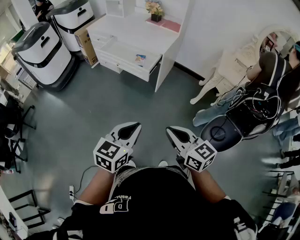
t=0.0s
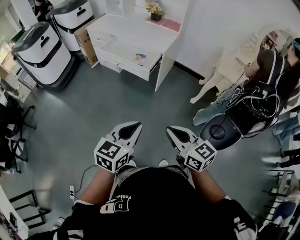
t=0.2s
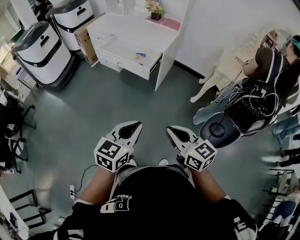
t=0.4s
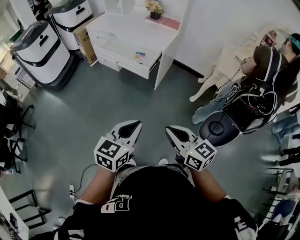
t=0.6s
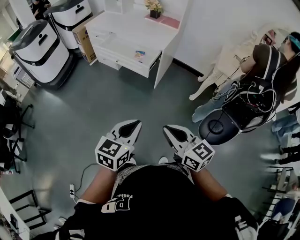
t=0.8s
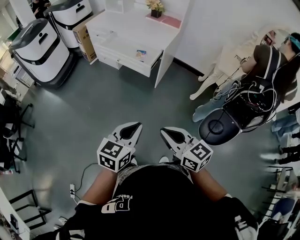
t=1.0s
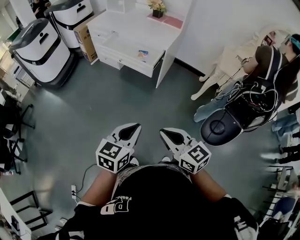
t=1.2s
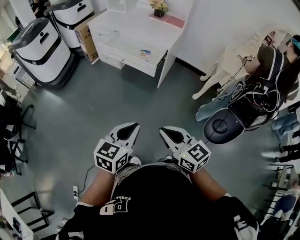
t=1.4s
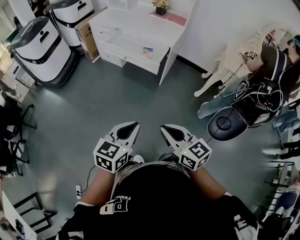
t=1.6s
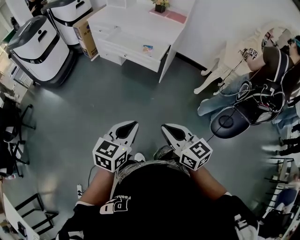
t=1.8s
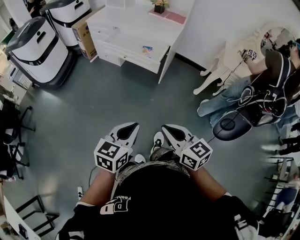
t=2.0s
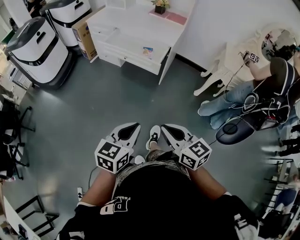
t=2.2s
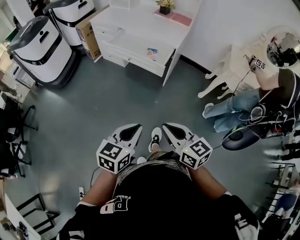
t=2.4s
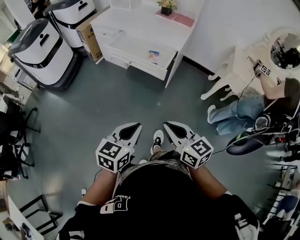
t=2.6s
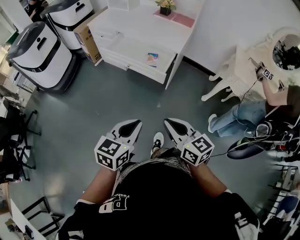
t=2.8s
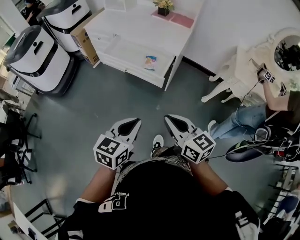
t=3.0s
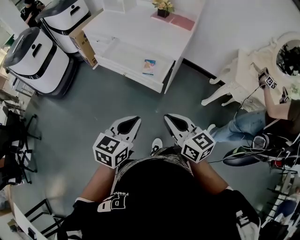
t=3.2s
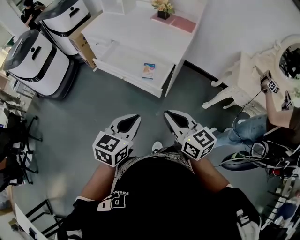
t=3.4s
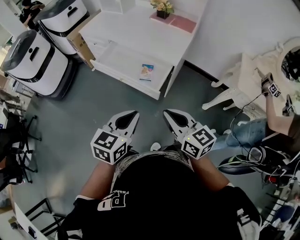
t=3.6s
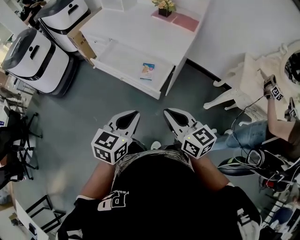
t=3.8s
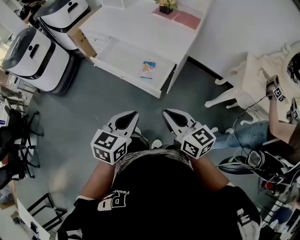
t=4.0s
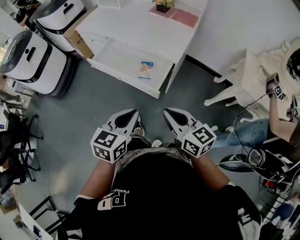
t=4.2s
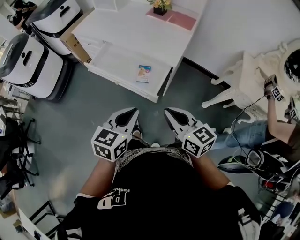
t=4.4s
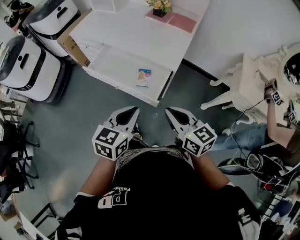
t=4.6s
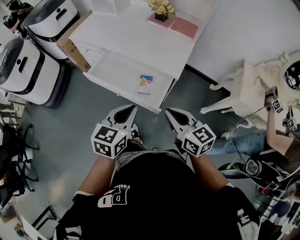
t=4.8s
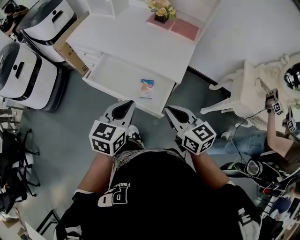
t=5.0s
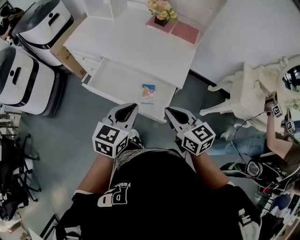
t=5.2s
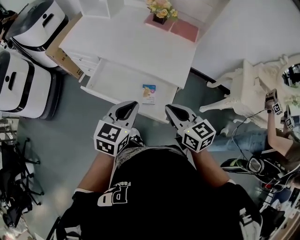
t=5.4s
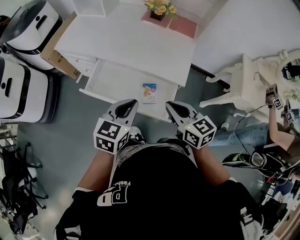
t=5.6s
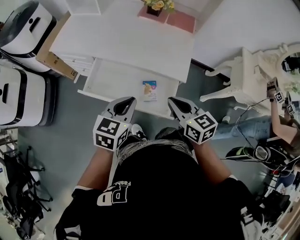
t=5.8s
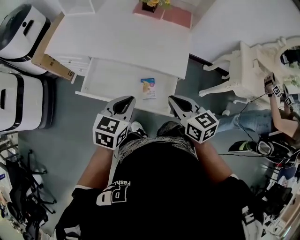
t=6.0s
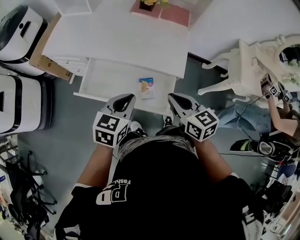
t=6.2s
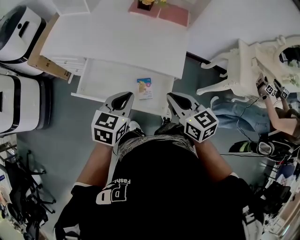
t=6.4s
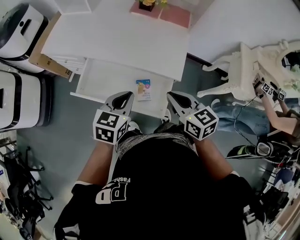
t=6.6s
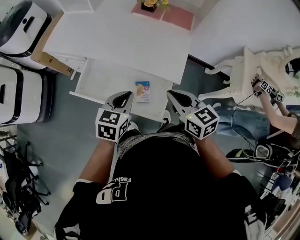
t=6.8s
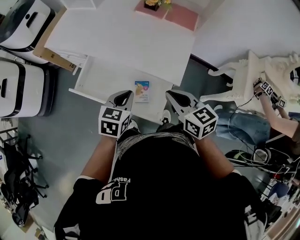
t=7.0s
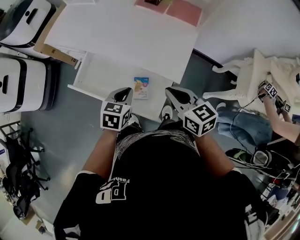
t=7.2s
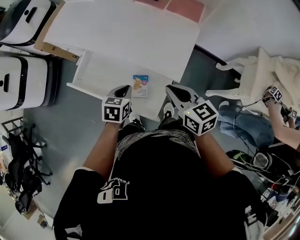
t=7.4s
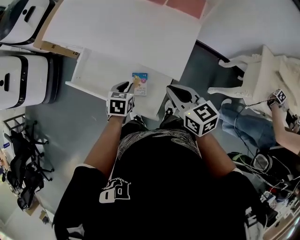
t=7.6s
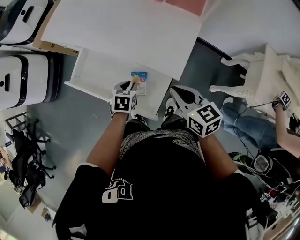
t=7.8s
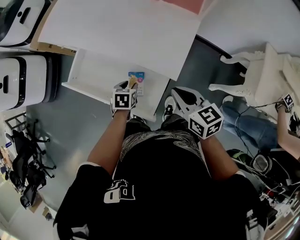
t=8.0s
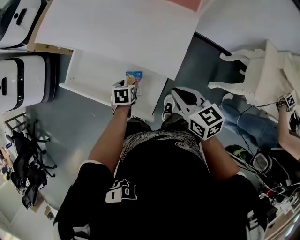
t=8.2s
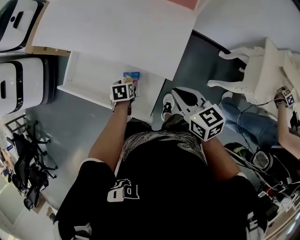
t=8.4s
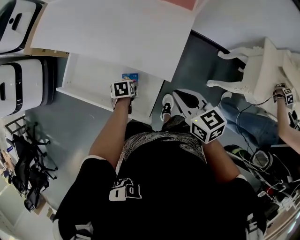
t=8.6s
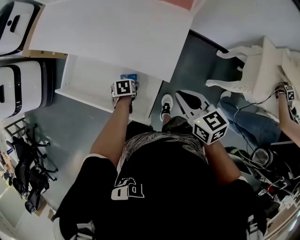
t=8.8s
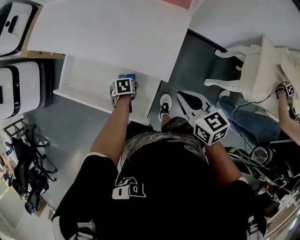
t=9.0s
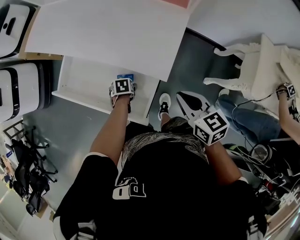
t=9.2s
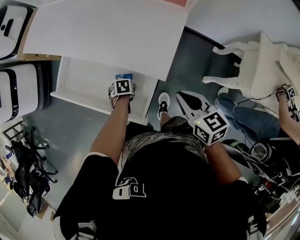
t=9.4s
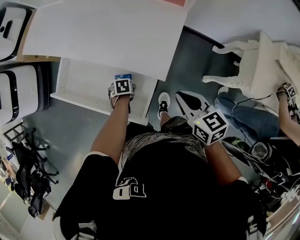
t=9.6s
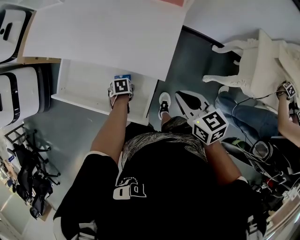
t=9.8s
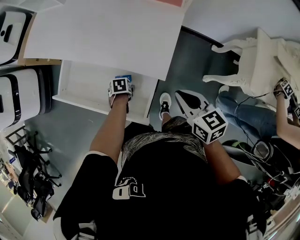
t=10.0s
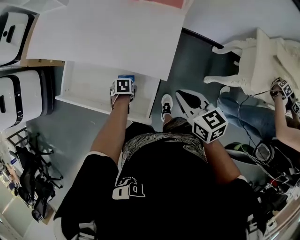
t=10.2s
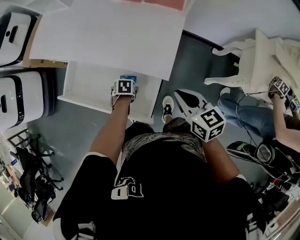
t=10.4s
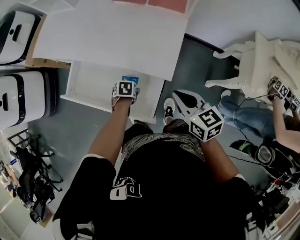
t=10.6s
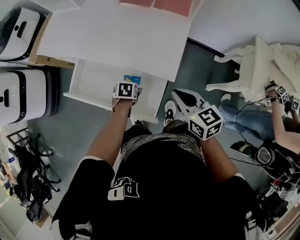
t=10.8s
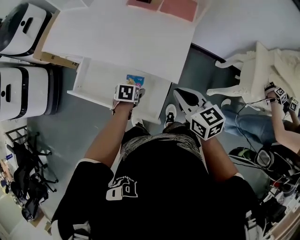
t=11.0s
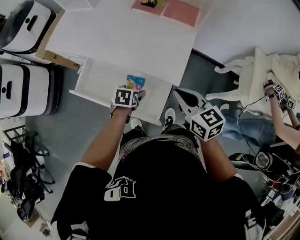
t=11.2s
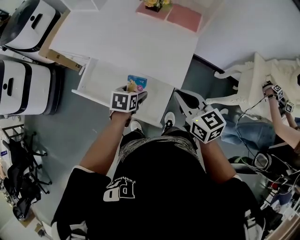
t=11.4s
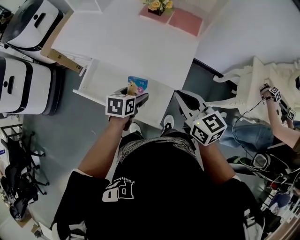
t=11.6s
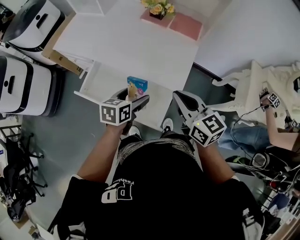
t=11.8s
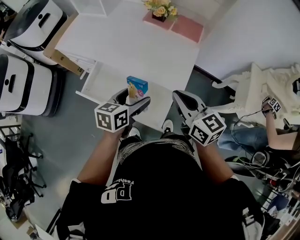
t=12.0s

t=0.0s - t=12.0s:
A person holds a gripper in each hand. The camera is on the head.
t=0.0s - t=1.6s: Both grippers move to the left, approximately 10 cm.
t=1.6s - t=3.0s: The two grippers go some 20 cm forward.
t=3.0s - t=4.4s: The grippers both shift forward by about 20 cm.
t=4.4s - t=6.0s: The right gripper is displaced forward by about 20 cm; the left gripper is displaced forward and to the left by some 25 cm.
t=6.0s - t=7.6s: The right gripper moves to the right, forward and downward, about 15 cm. Meanwhile the left gripper heads downward, forward and to the right, covering roughly 20 cm, and changes its angle by some 30 degrees.
t=7.6s - t=9.0s: The left gripper moves downward, roughly 15 cm, swivels roughly 30 degrees, and opens its fingers. Meanwhile the right gripper ends up about 10 cm from where it was.
t=9.0s - t=10.4s: The grippers make only small movements.
t=10.4s - t=12.0s: The right gripper is displaced upward by some 15 cm, while the left gripper heads upward, covering some 30 cm, and angles its fingers upward, by some 50 degrees.

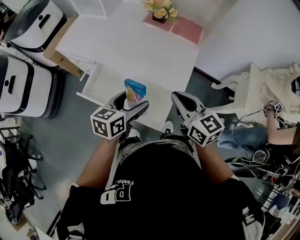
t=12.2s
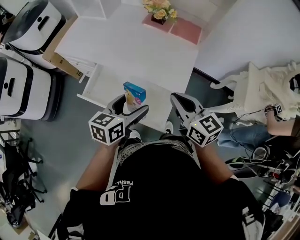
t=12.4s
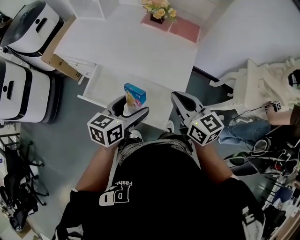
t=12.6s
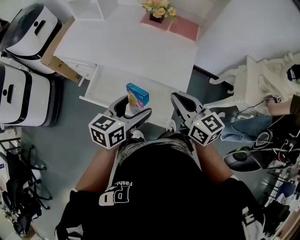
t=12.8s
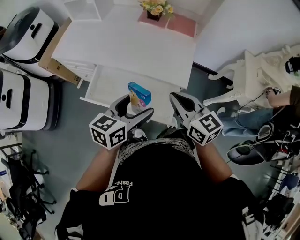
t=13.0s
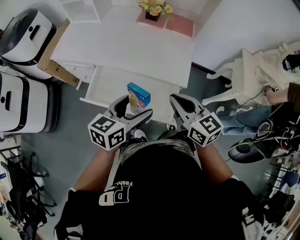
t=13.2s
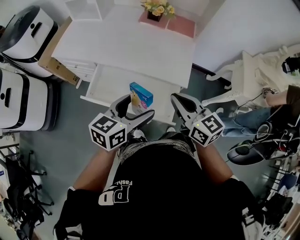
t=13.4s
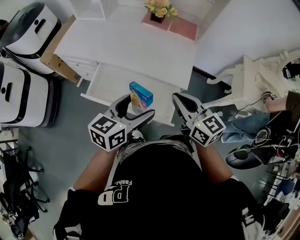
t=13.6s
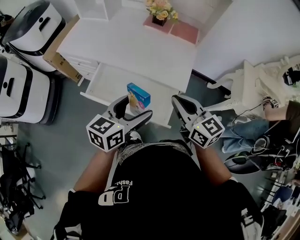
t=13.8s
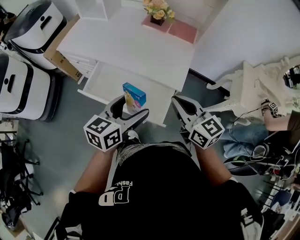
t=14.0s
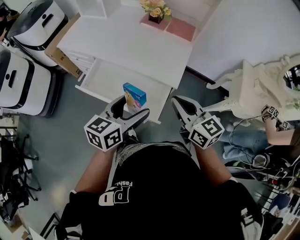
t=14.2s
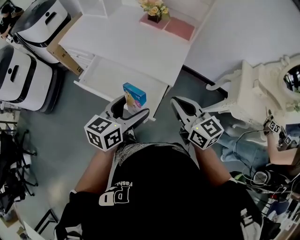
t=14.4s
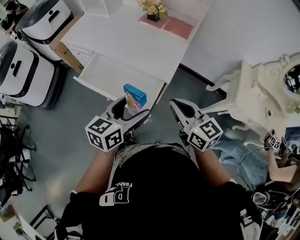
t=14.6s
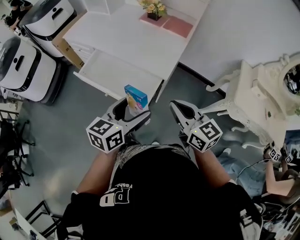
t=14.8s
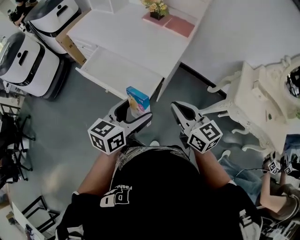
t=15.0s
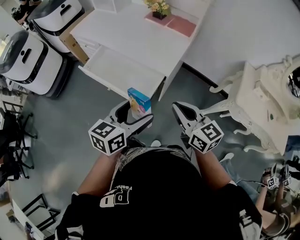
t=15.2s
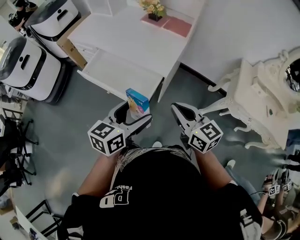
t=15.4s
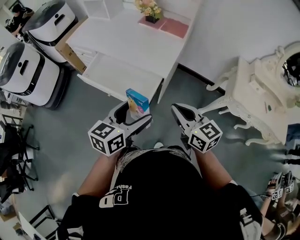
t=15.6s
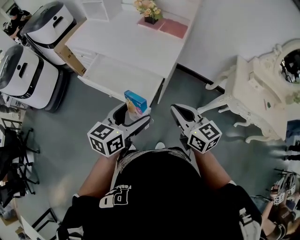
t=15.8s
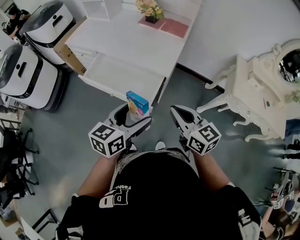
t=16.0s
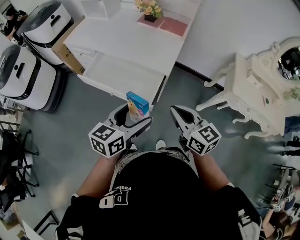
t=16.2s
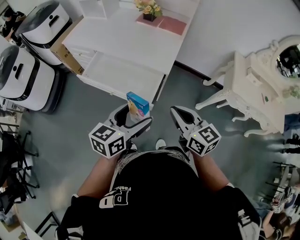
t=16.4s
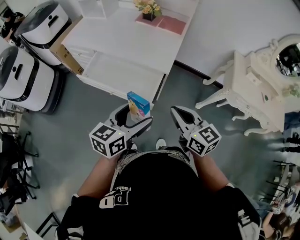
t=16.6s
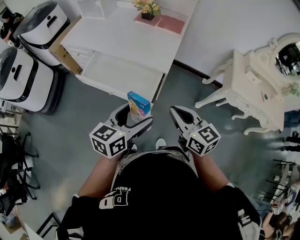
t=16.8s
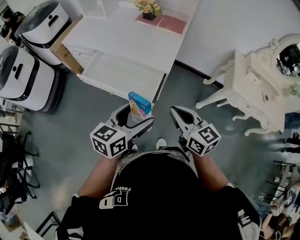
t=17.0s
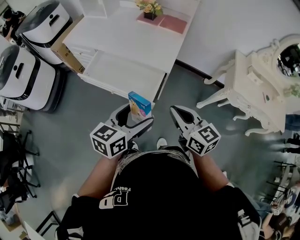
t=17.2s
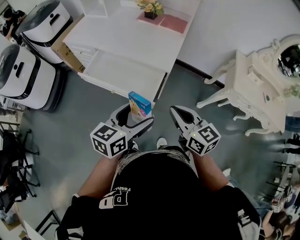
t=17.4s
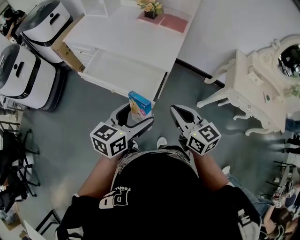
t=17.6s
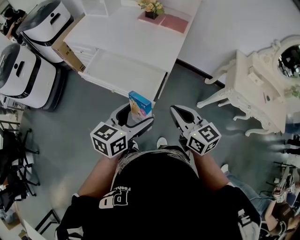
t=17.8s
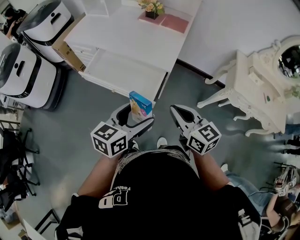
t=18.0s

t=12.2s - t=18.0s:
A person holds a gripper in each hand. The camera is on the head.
t=12.2s - t=13.6s: The right gripper shifts roughly 5 cm backward. The left gripper is displaced backward and upward by about 10 cm.
t=13.6s - t=15.0s: Both grippers move to the right and backward, some 20 cm.
t=15.0s - t=16.6s: The right gripper travels to the left and backward by about 10 cm; the left gripper is displaced to the left by about 5 cm.
t=16.6s - t=18.0s: The two grippers keep their place.

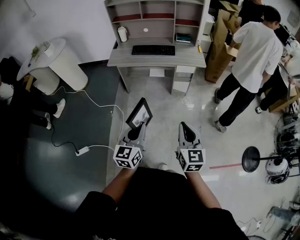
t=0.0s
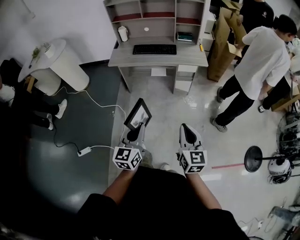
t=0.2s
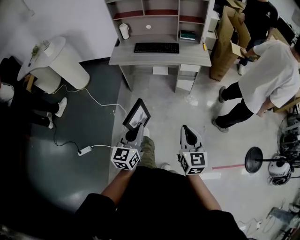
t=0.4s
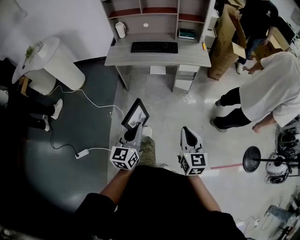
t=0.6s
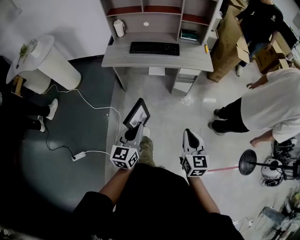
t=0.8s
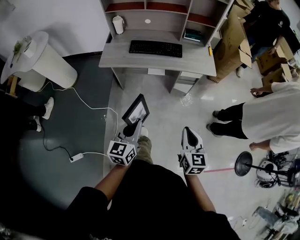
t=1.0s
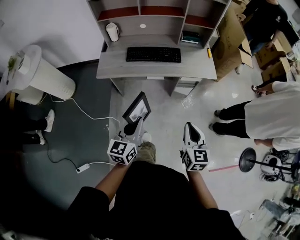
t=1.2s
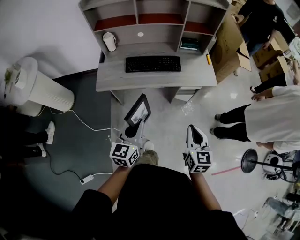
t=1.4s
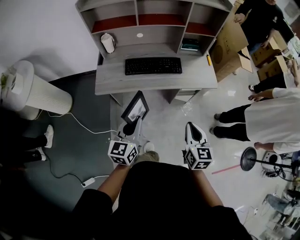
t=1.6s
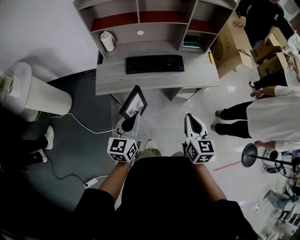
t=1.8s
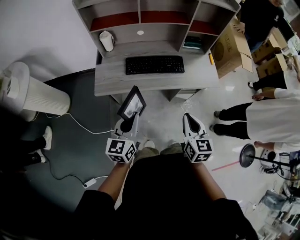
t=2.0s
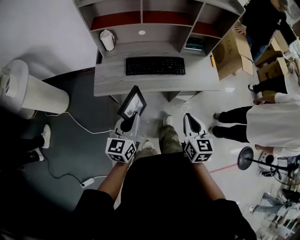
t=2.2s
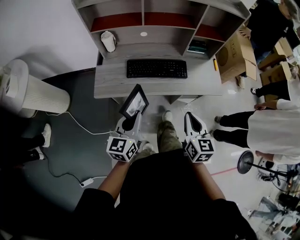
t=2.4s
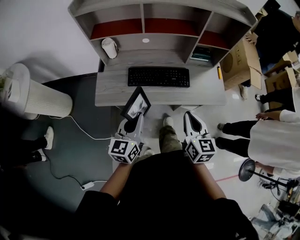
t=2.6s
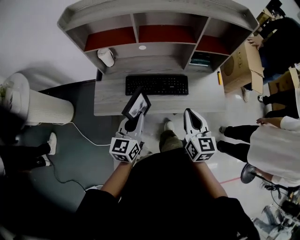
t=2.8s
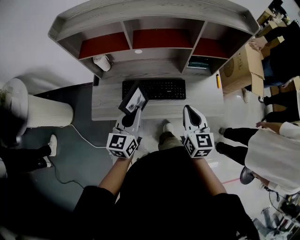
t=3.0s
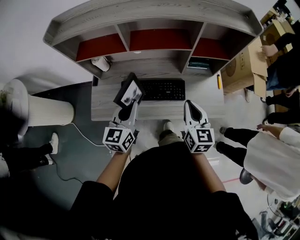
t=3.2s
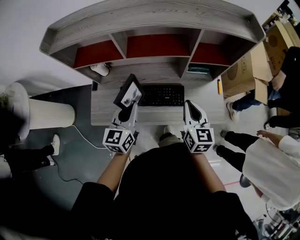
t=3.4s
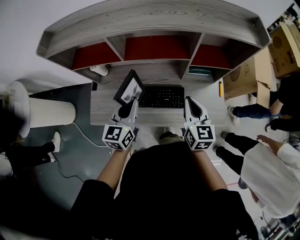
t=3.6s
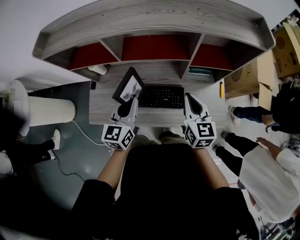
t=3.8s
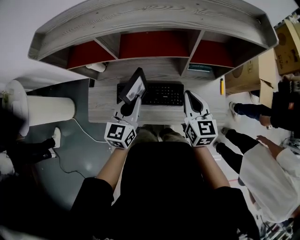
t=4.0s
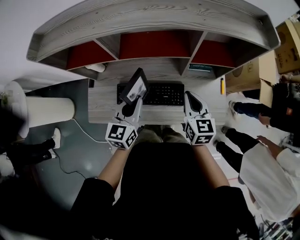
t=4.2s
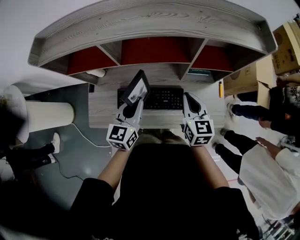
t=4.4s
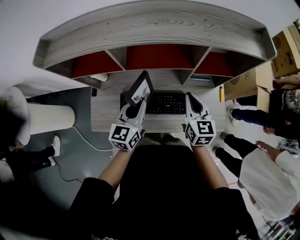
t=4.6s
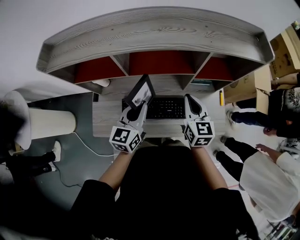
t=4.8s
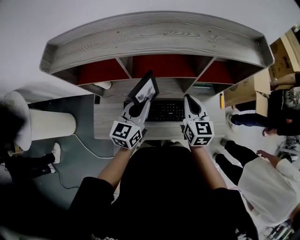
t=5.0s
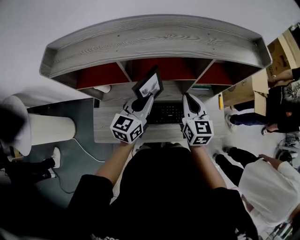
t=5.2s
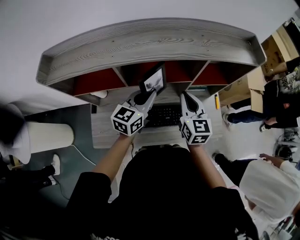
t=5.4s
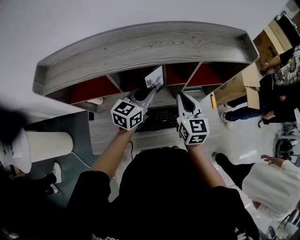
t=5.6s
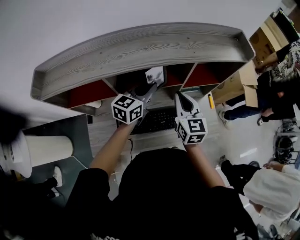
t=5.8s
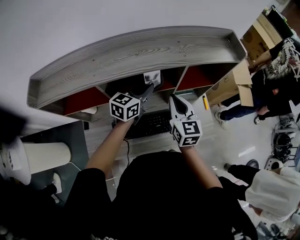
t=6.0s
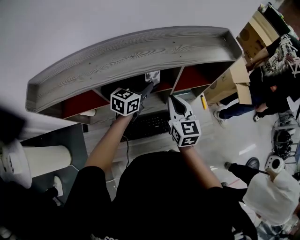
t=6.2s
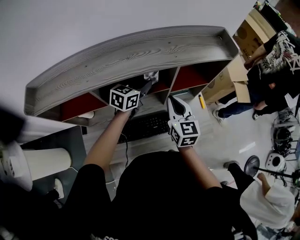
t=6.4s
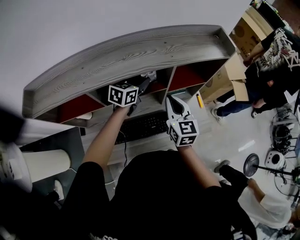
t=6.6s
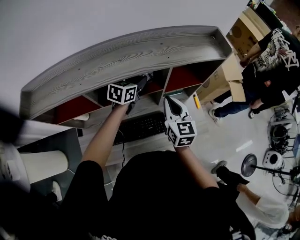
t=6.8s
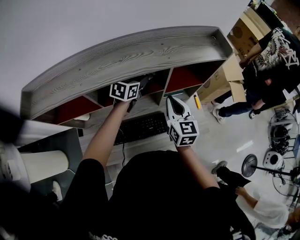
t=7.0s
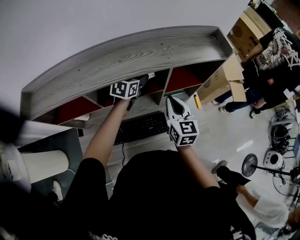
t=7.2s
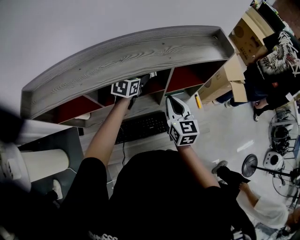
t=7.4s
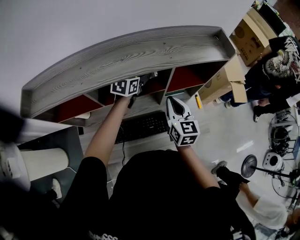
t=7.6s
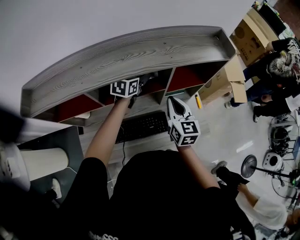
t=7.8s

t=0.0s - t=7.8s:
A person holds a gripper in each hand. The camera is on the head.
t=0.0s - t=1.6s: The two grippers travel together, forward, roughly 40 cm.
t=1.6s - t=3.2s: Both grippers travel together forward, some 35 cm.
t=3.2s - t=4.6s: The grippers both shift forward by approximately 15 cm.
t=4.6s - t=6.2s: The right gripper heads upward, covering some 5 cm, while the left gripper goes some 20 cm forward, and rotates about 30 degrees.
t=6.2s - t=7.8s: The left gripper travels forward by about 10 cm, and opens its fingers.
